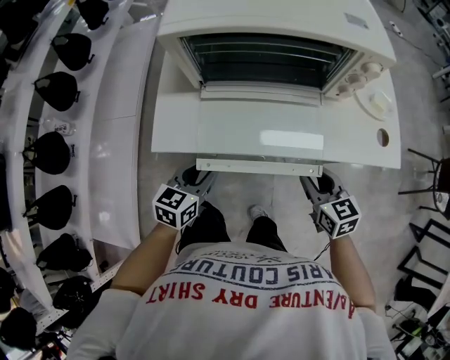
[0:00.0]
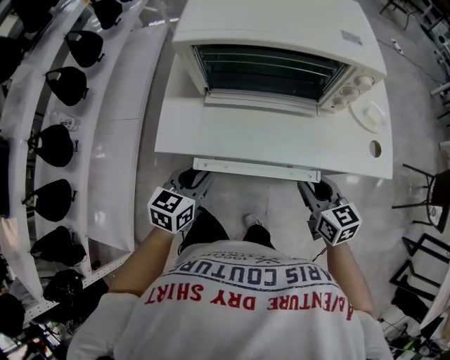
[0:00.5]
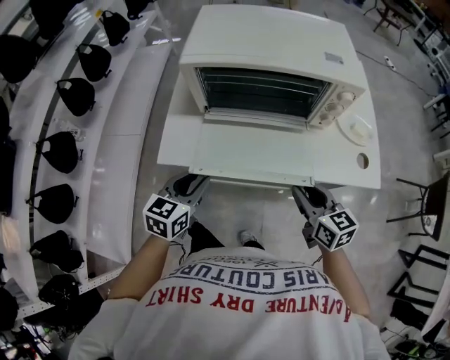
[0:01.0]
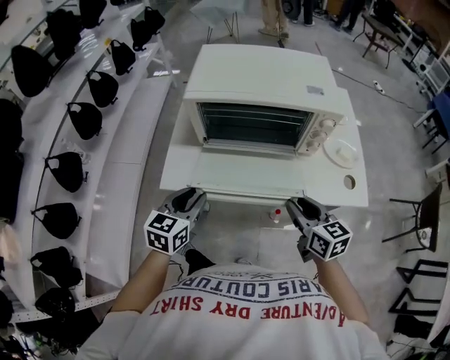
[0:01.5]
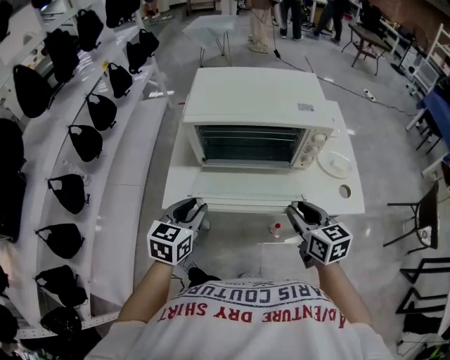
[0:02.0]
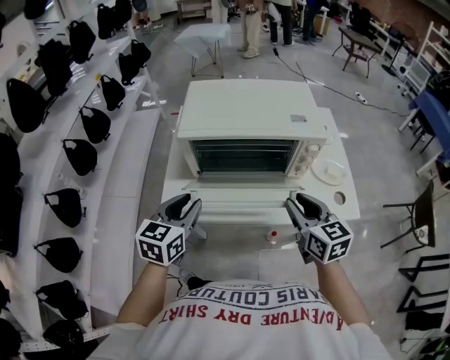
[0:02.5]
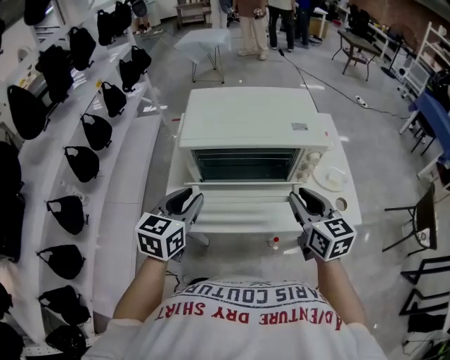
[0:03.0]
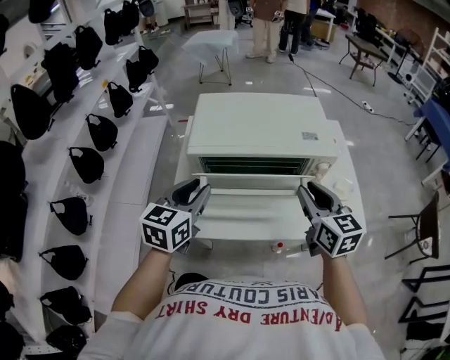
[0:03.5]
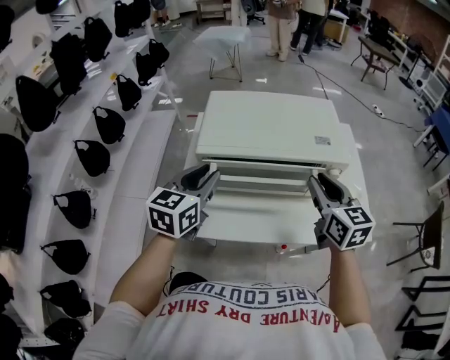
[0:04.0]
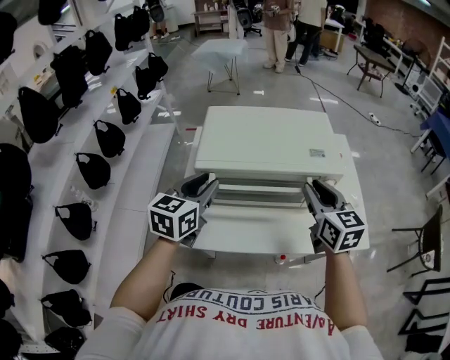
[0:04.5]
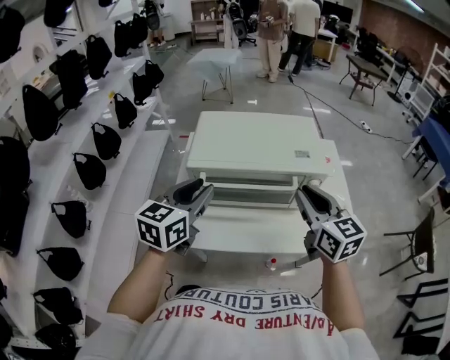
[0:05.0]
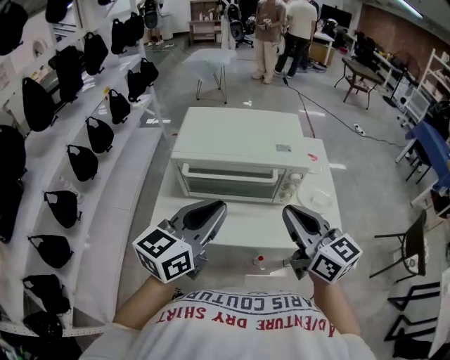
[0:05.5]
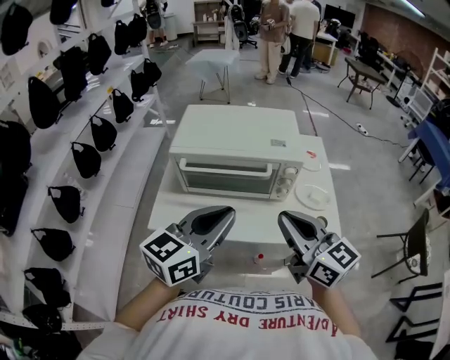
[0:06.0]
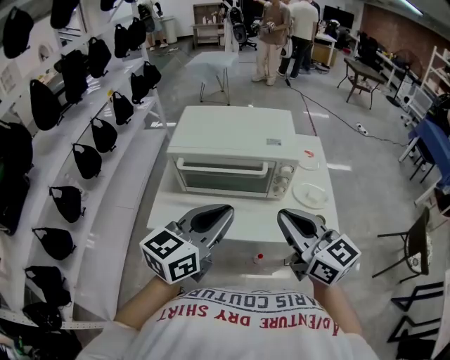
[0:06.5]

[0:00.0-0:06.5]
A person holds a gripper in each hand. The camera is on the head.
0:00.0 to 0:02.0: Both grippers travel together upward, some 15 cm.
0:02.0 to 0:04.5: Both grippers move forward and upward, some 20 cm.
0:04.5 to 0:06.5: The right gripper goes approximately 15 cm backward, and changes its angle by some 30 degrees. The left gripper moves backward, to the right and upward, approximately 25 cm.

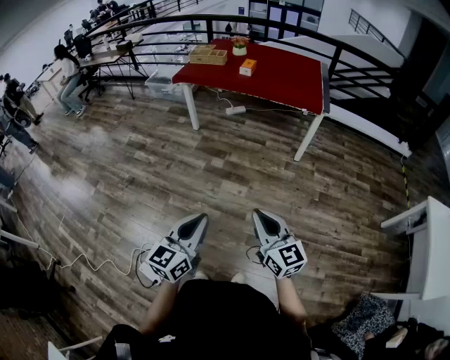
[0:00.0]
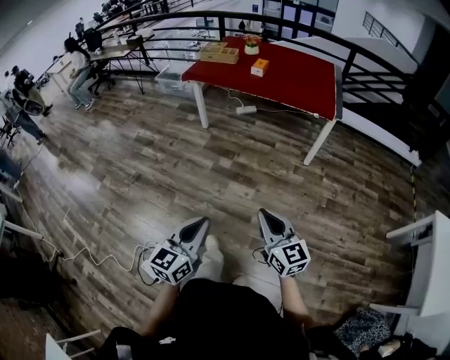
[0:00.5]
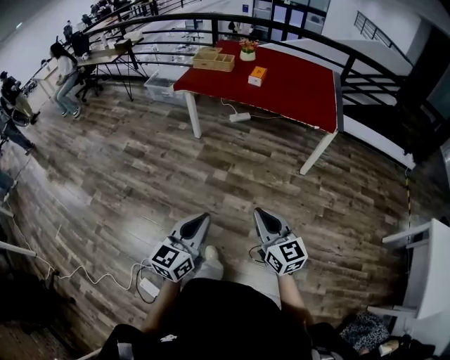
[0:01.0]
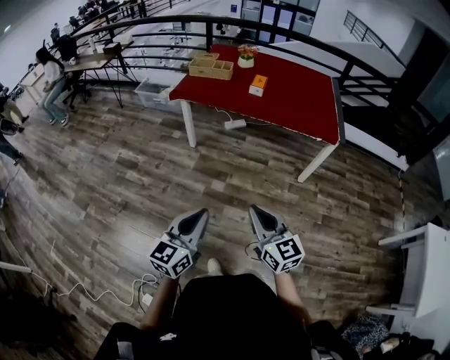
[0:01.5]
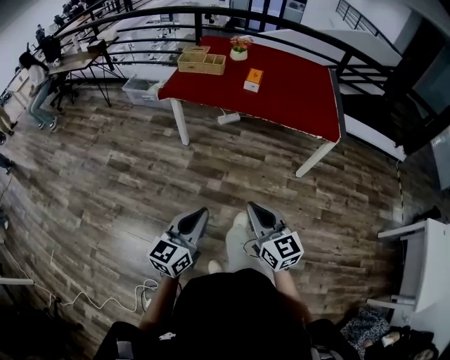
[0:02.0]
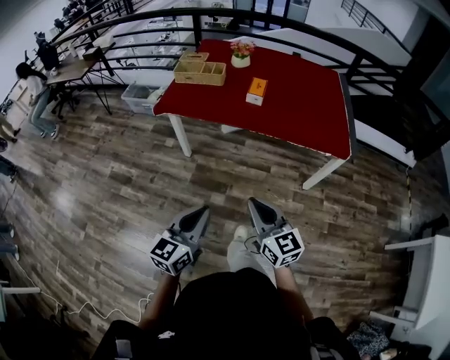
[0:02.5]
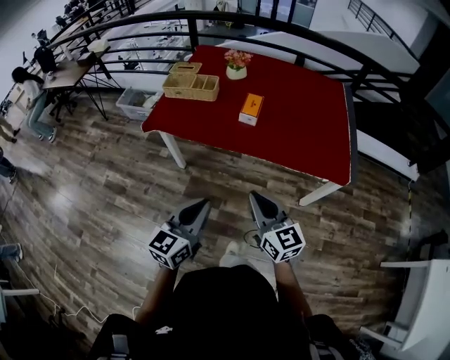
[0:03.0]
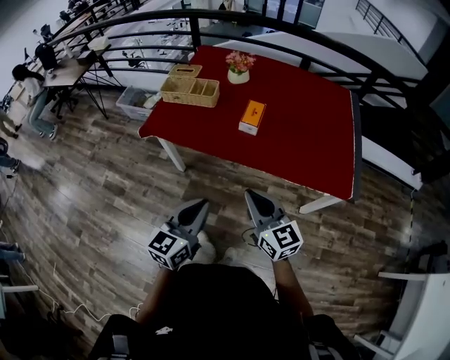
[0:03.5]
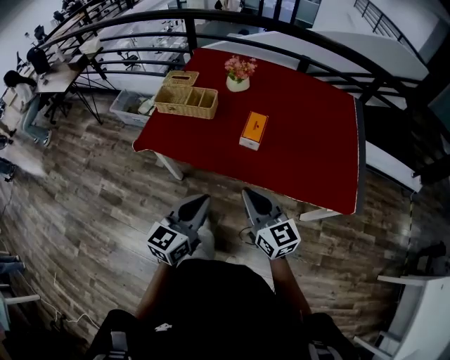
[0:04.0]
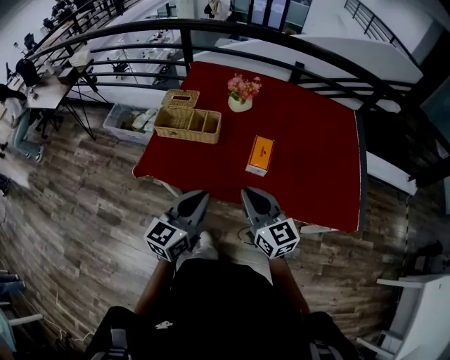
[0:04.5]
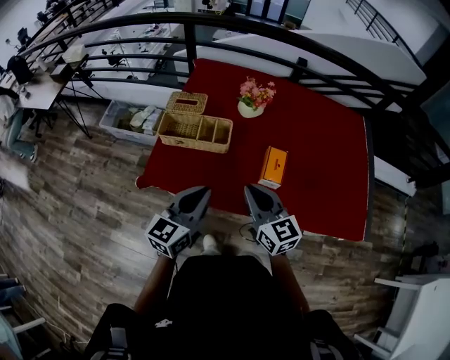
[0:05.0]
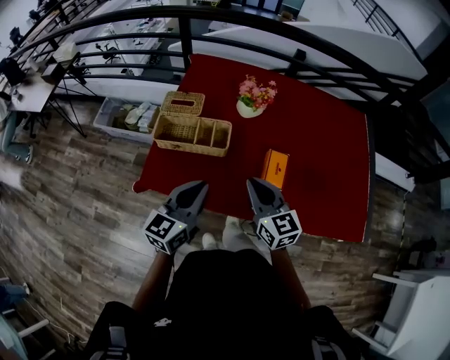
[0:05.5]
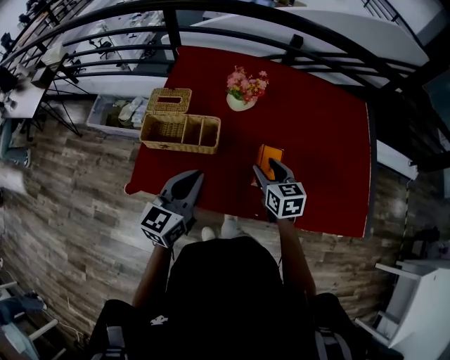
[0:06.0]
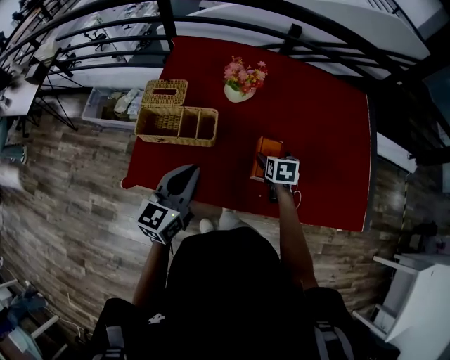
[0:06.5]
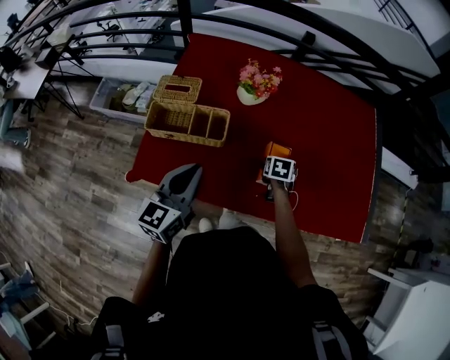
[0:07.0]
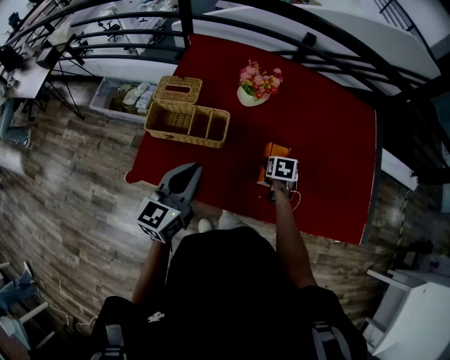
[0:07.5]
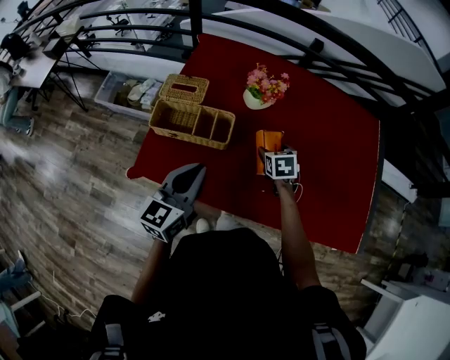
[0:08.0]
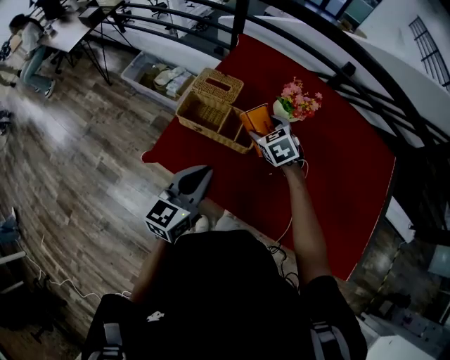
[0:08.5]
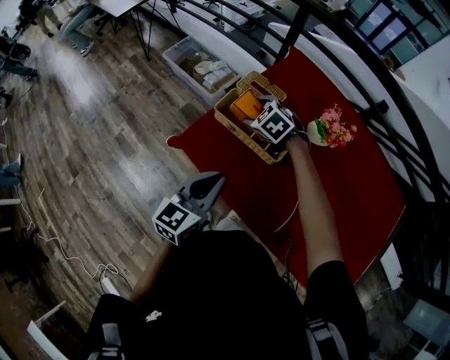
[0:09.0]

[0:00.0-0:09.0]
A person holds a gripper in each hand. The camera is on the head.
0:00.0 to 0:02.0: The grippers both shift forward by roughly 40 cm.
0:02.0 to 0:04.5: The pair of grippers is taken forward, roughly 60 cm.
0:04.5 to 0:07.0: The left gripper shifts approximately 20 cm forward and to the left, while the right gripper moves forward and downward, approximately 40 cm, tips its fingers downward by roughly 60 degrees, and opens its fingers.
0:07.0 to 0:09.0: The right gripper shifts by about 40 cm, and rotates around the line of its fingers by approximately 80 degrees, counterclockwise from behind. Meanwhile the left gripper shifts by some 10 cm, and rotates approximately 20 degrees.

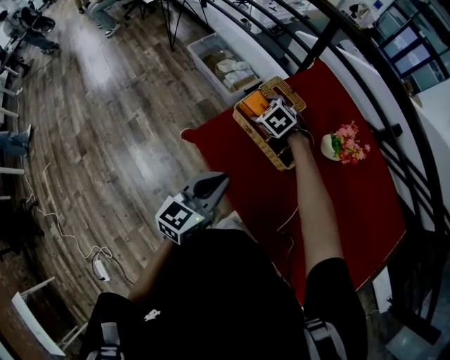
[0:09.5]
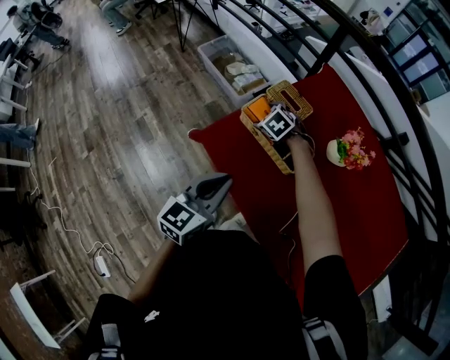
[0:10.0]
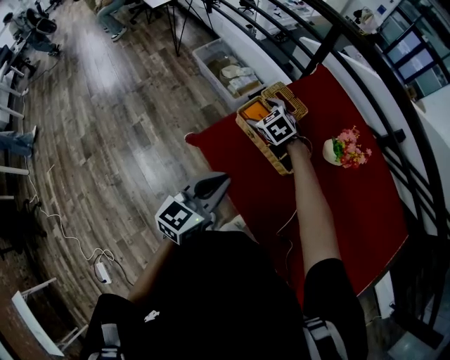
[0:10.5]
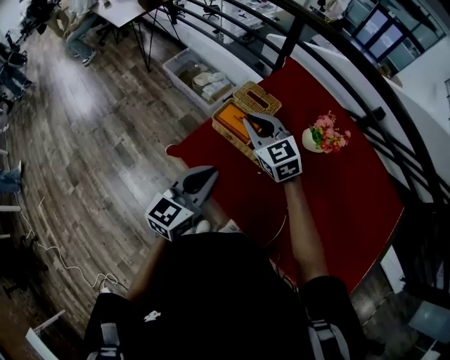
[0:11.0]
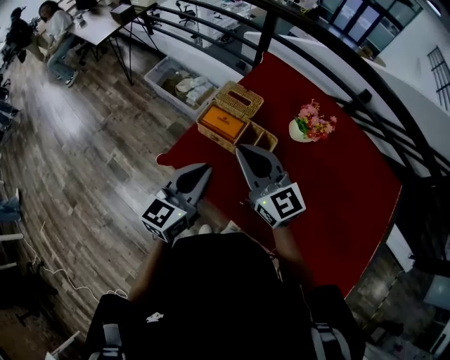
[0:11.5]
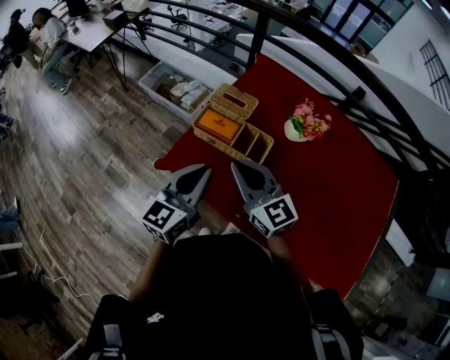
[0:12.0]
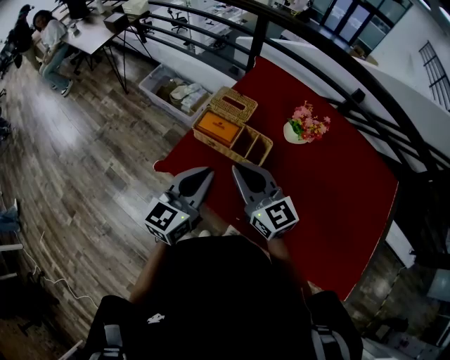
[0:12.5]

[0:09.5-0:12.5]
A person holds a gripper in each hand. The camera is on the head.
0:09.5 to 0:11.0: The right gripper shifts some 15 cm upward and backward, tilts its fingers some 40 degrees upward, and closes its fingers.
0:11.0 to 0:12.5: The right gripper travels backward by roughly 15 cm, and turns by roughly 30 degrees.

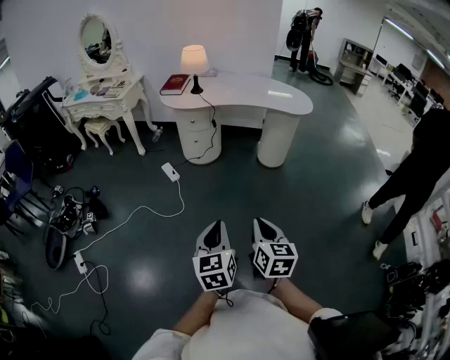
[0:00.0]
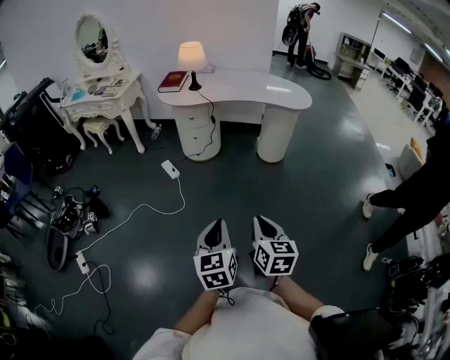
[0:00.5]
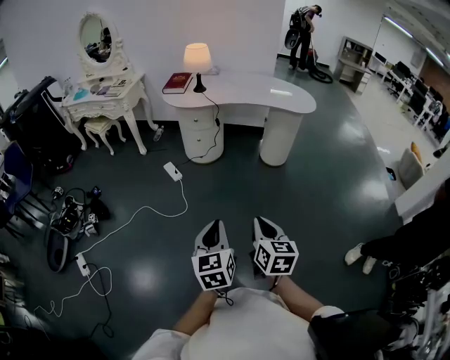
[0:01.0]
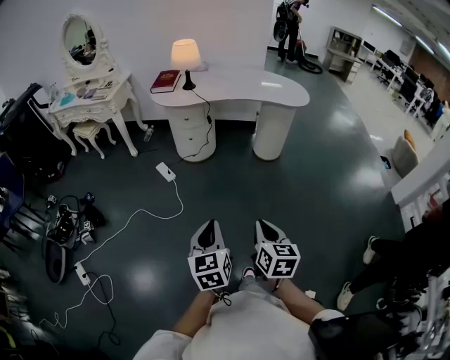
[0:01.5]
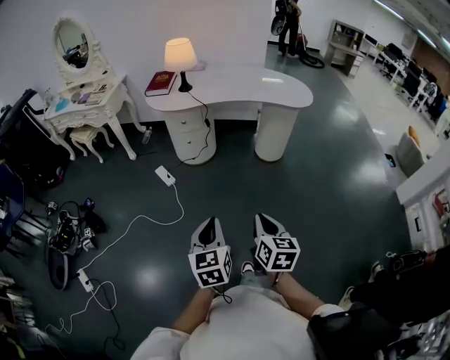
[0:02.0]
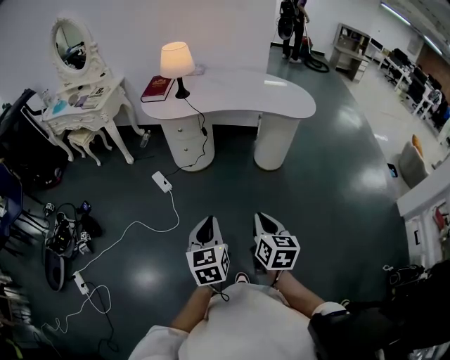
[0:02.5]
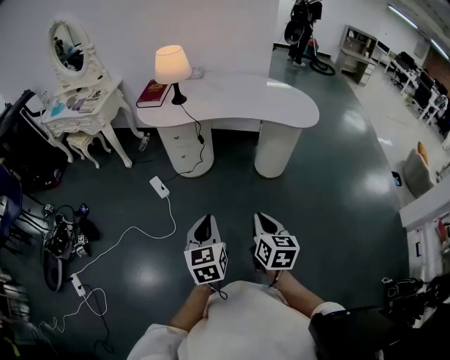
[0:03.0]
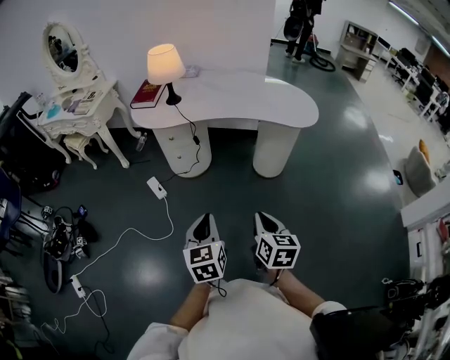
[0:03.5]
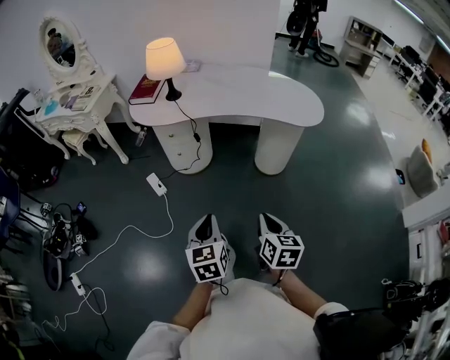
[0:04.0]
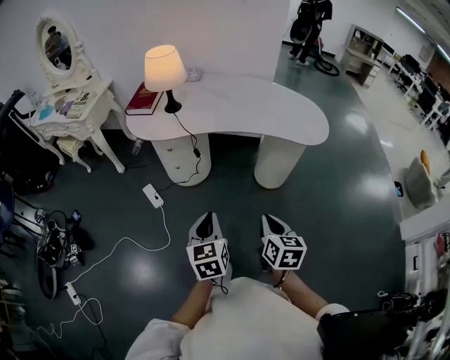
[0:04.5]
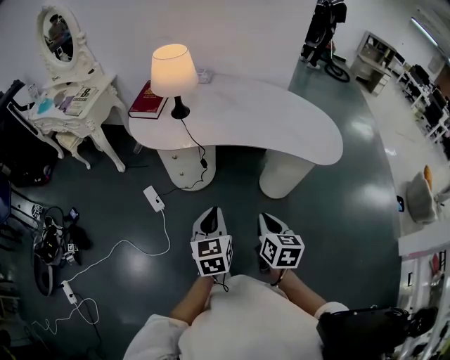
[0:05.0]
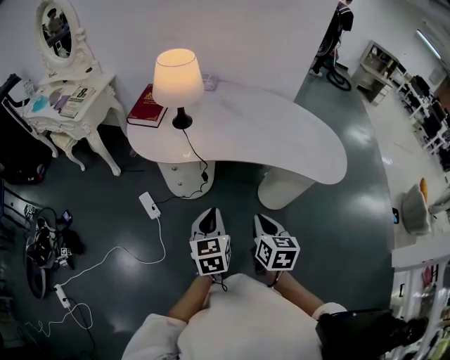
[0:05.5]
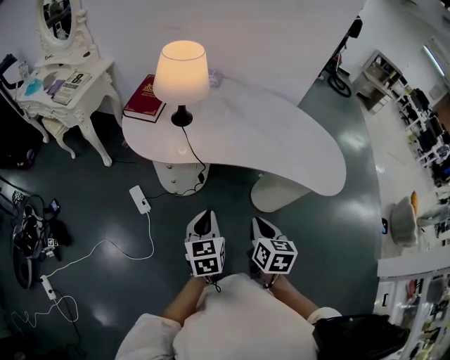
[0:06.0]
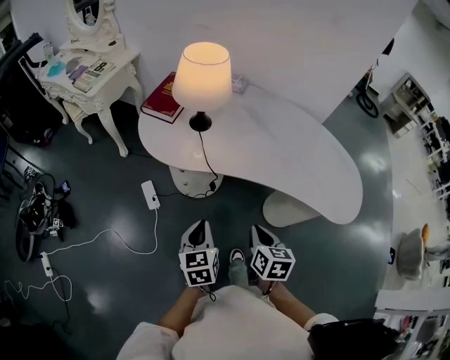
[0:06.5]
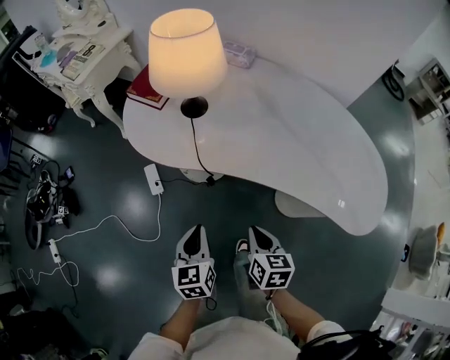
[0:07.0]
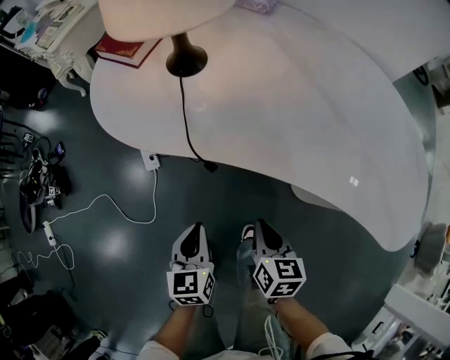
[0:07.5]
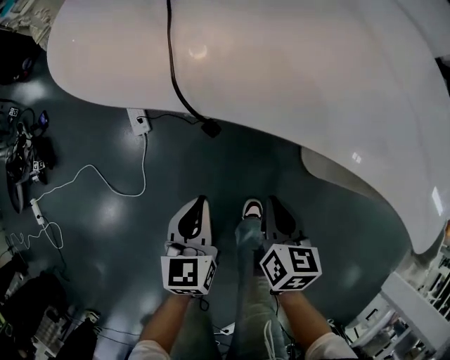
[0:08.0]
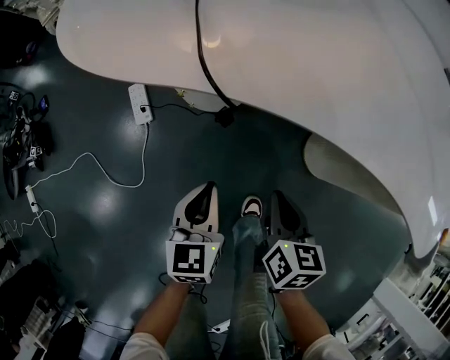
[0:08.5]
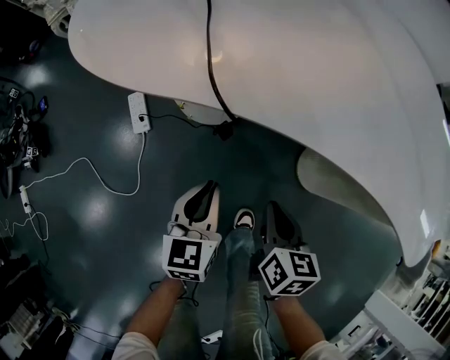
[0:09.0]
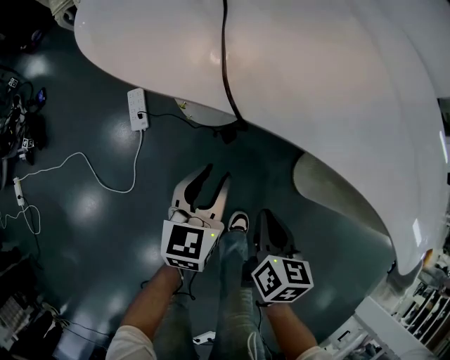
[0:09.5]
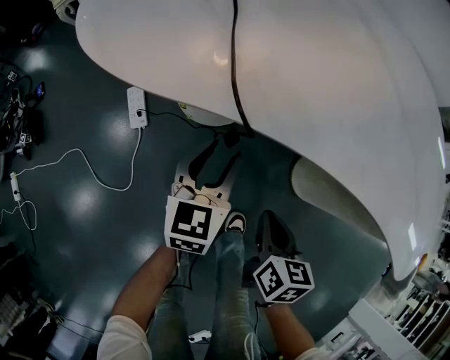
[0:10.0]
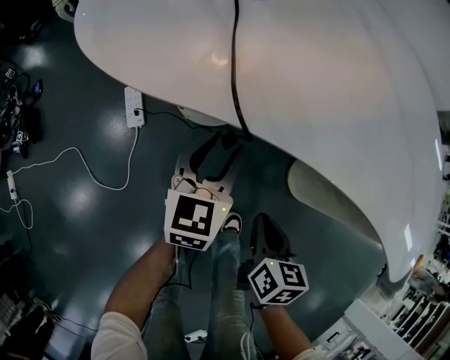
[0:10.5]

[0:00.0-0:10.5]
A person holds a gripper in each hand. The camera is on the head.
0:00.0 to 0:02.0: Both grippers travel together forward, about 15 cm.
0:02.0 to 0:04.0: The two grippers go roughly 25 cm forward and to the right.
0:04.0 to 0:06.5: The two grippers go approximately 35 cm forward.
0:06.5 to 0:08.5: Both grippers move downward, approximately 30 cm.
0:08.5 to 0:10.5: The left gripper is displaced forward by approximately 15 cm, and opens up.
